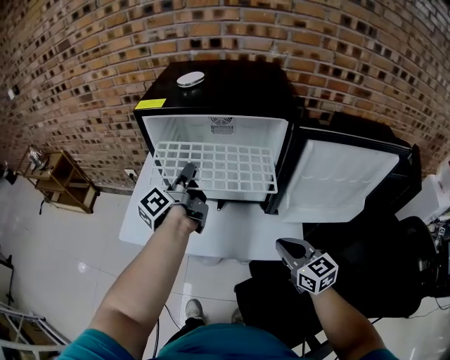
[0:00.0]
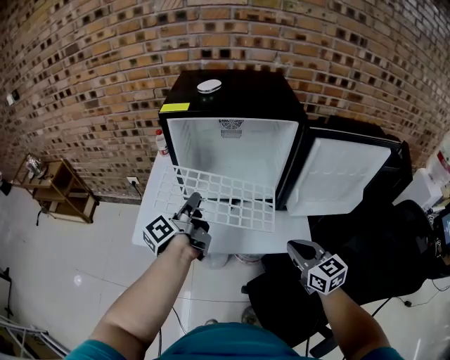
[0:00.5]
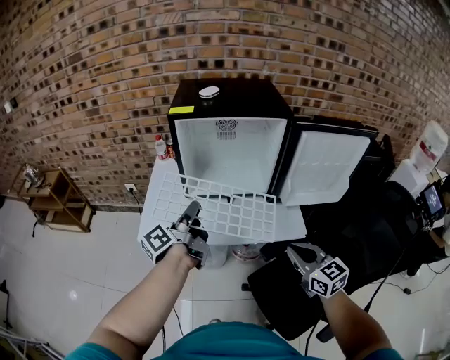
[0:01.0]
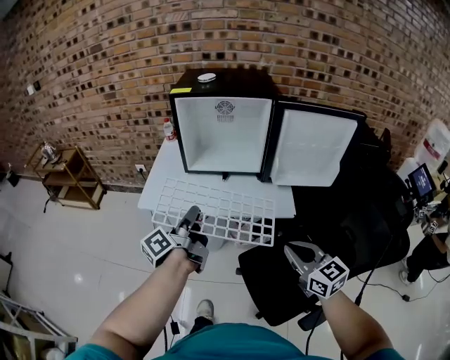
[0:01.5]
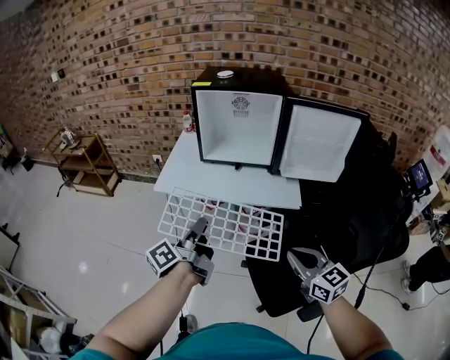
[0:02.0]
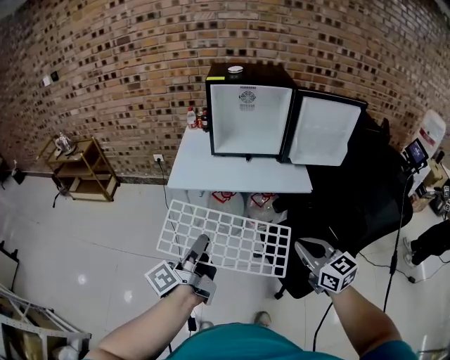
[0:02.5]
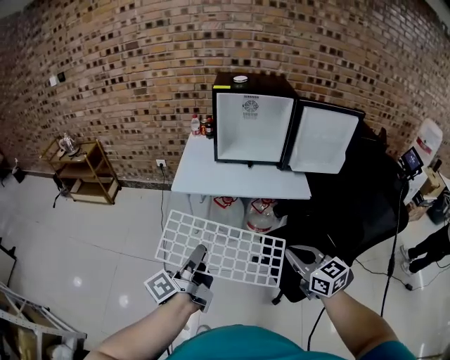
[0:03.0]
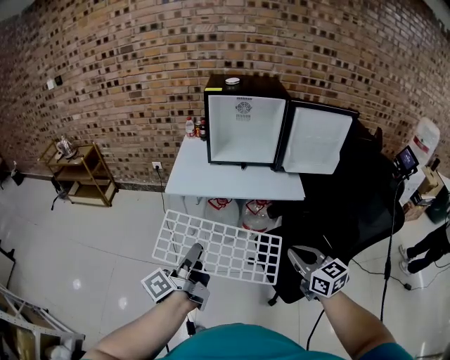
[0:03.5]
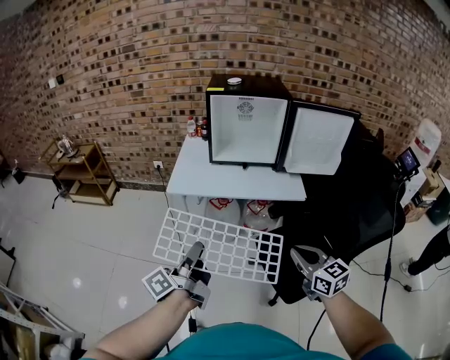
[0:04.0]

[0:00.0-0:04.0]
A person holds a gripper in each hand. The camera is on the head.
0:00.0 to 0:02.0: The two grippers go some 40 cm backward.
0:02.0 to 0:04.0: The left gripper heads to the left and backward, covering approximately 15 cm. Meanwhile the right gripper goes about 10 cm to the left and backward.

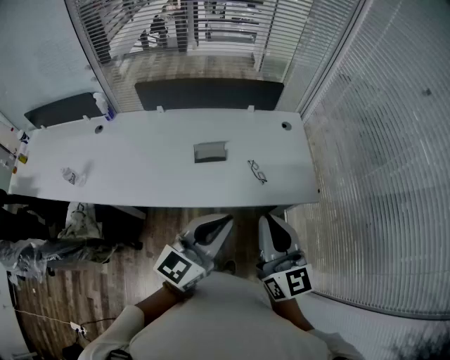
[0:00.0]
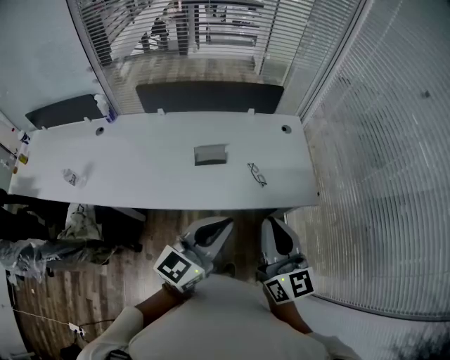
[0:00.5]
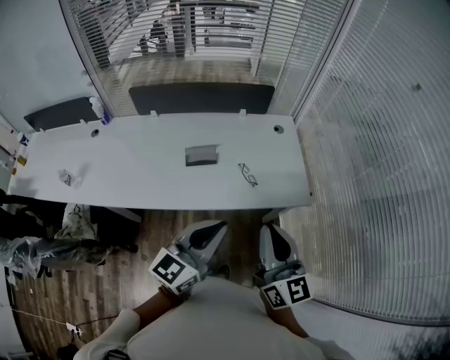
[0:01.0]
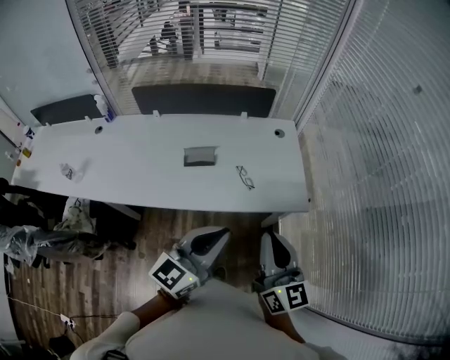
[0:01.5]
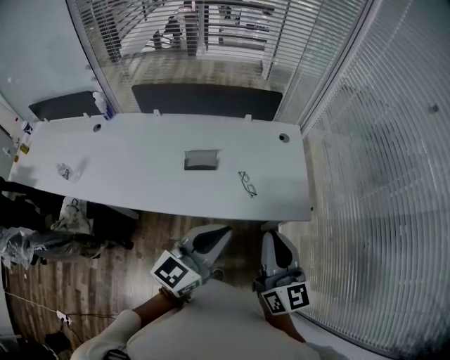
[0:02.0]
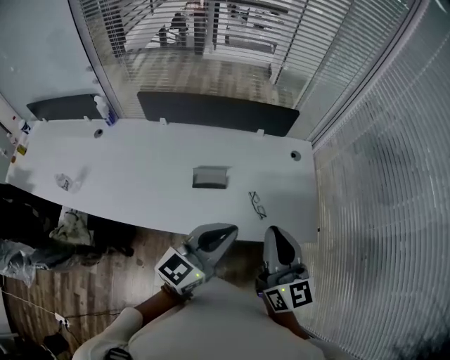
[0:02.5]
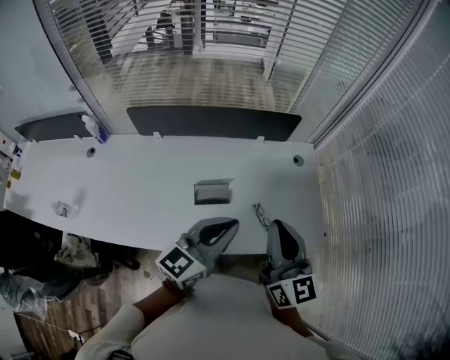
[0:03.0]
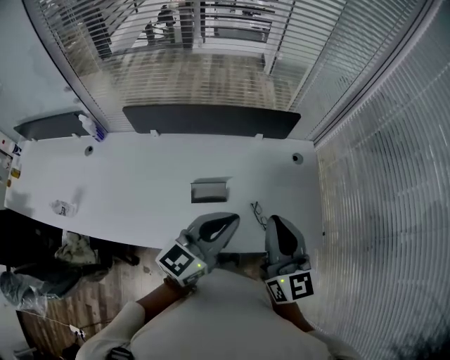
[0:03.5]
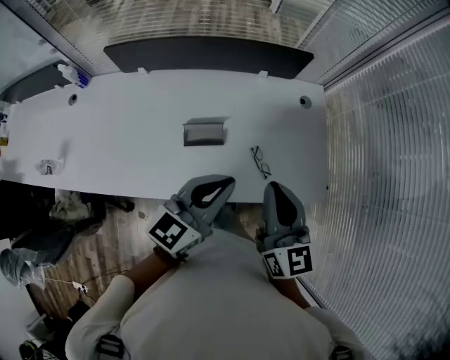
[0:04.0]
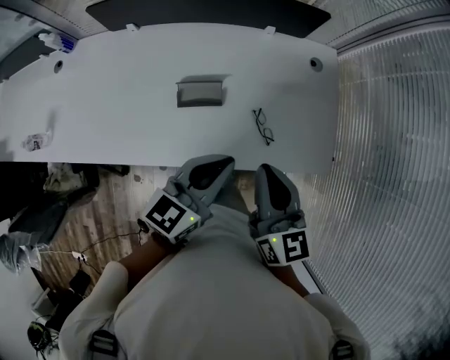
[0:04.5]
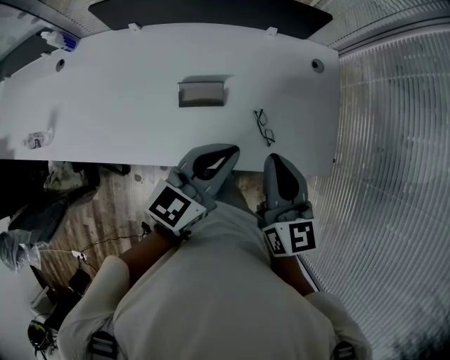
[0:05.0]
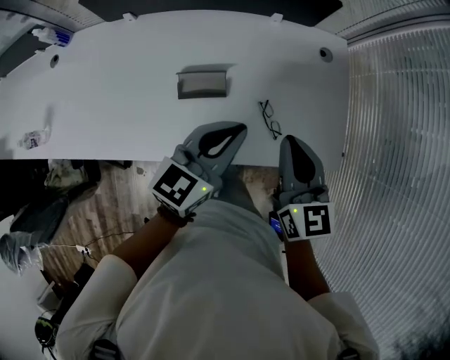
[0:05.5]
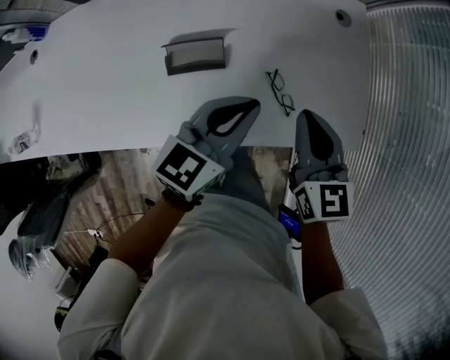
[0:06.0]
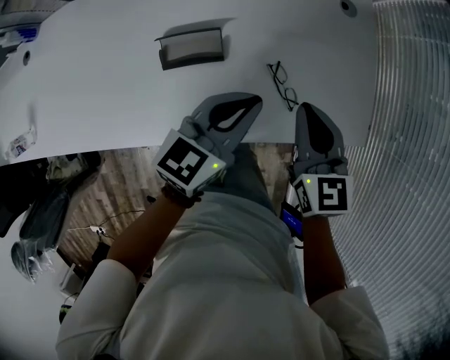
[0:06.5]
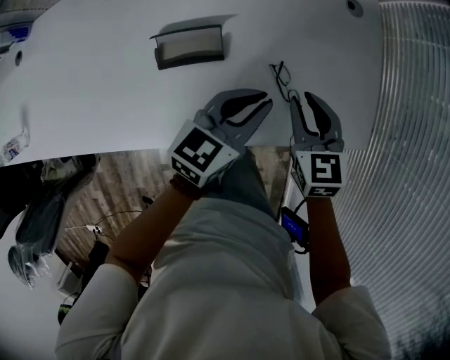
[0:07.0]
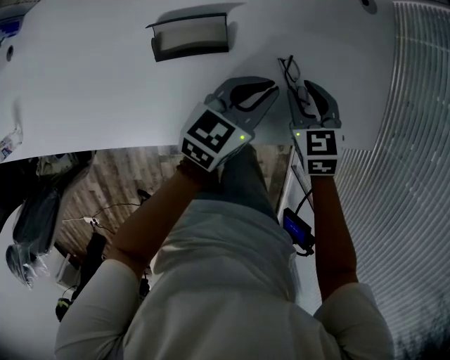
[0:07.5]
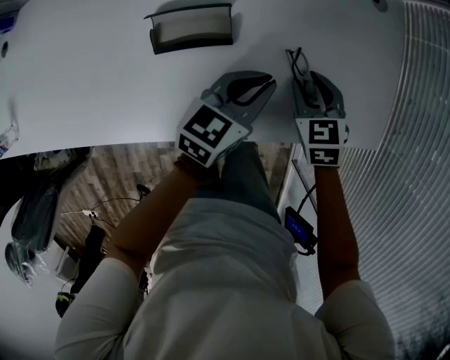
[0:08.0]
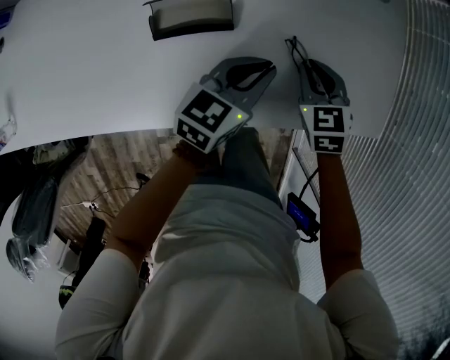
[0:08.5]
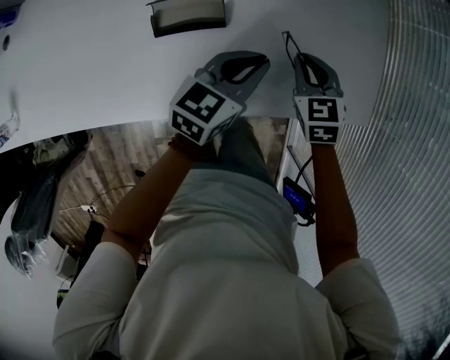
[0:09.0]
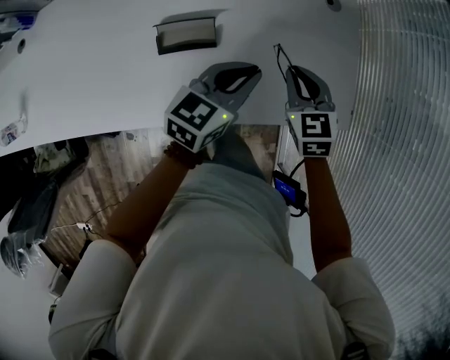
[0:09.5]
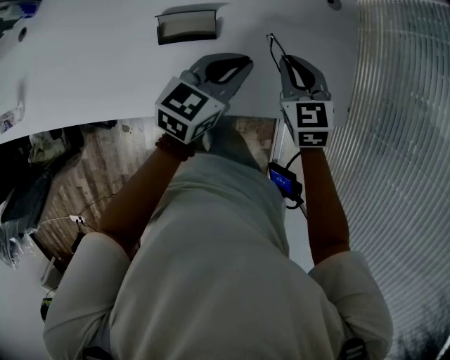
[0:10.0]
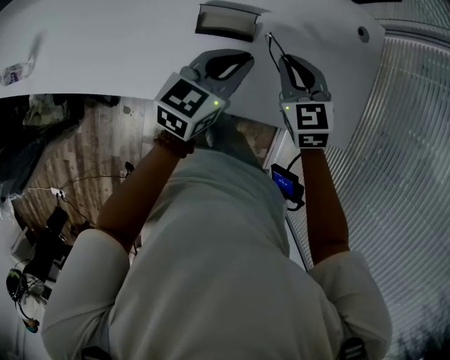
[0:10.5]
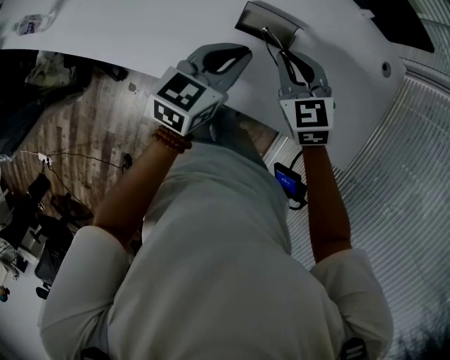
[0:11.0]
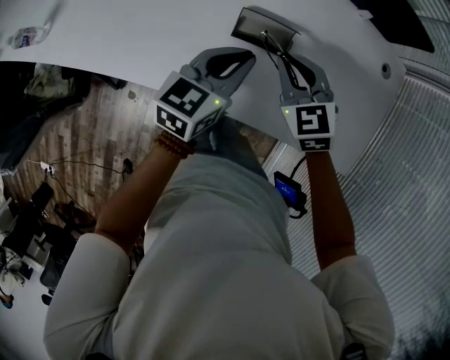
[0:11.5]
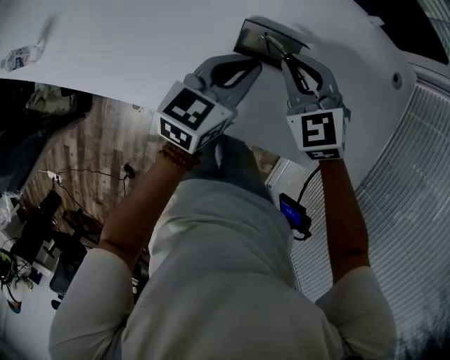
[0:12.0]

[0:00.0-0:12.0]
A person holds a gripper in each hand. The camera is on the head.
0:00.0 to 0:02.0: The two grippers go about 10 cm to the right.
0:02.0 to 0:04.0: Both grippers move forward and to the left, about 20 cm.
0:04.0 to 0:06.0: The two grippers go approximately 15 cm downward.
0:06.0 to 0:08.0: Both grippers travel together downward, roughly 20 cm. The right gripper swivels approximately 30 degrees, and opens up.
0:08.0 to 0:10.0: The grippers both shift upward by about 15 cm. The right gripper closes up.
0:10.0 to 0:12.0: The right gripper moves approximately 20 cm, and rotates roughly 30 degrees. The left gripper shifts by roughly 15 cm.

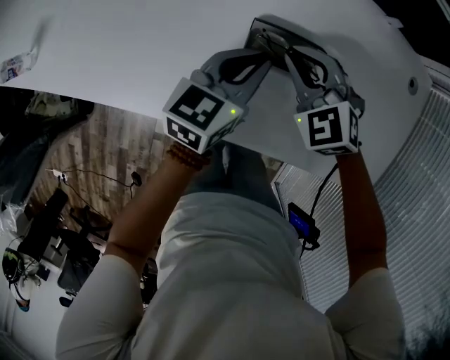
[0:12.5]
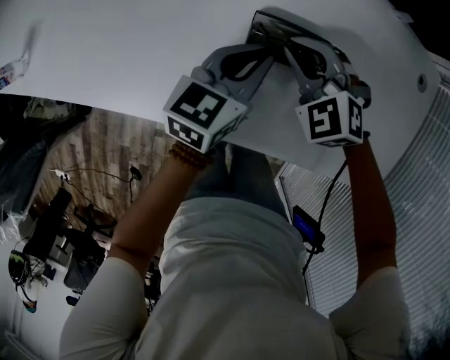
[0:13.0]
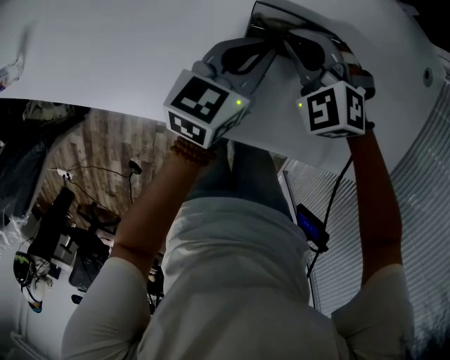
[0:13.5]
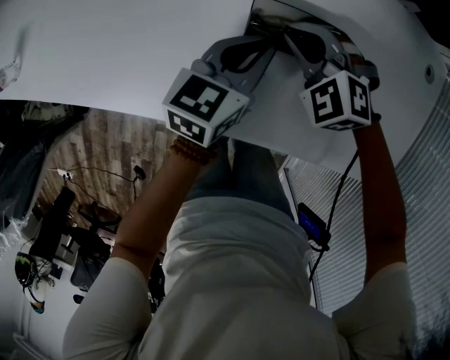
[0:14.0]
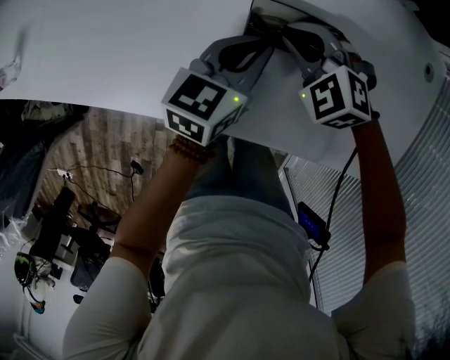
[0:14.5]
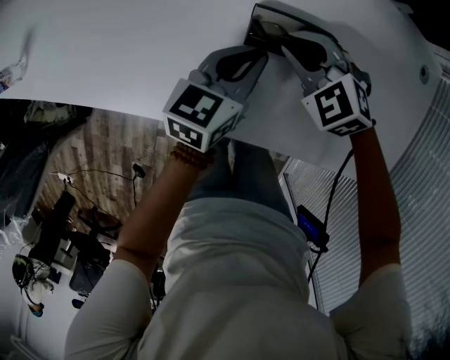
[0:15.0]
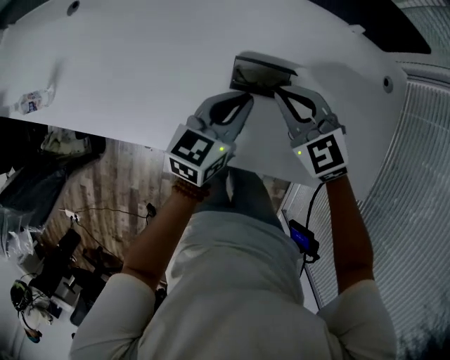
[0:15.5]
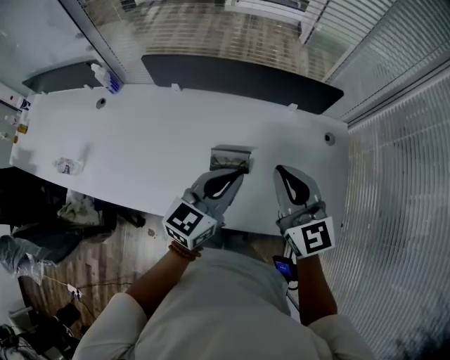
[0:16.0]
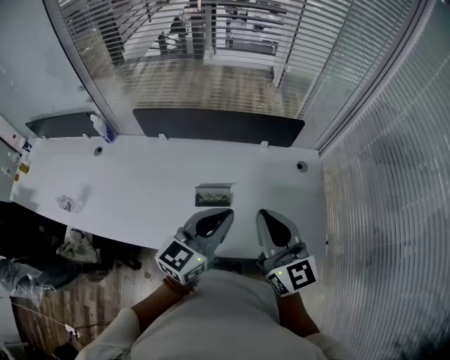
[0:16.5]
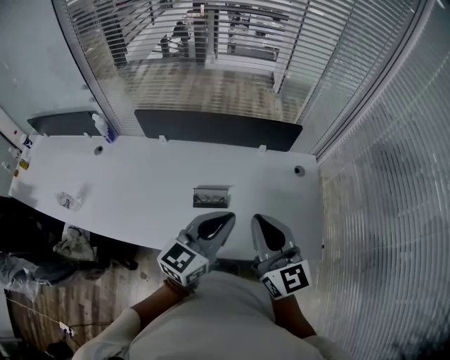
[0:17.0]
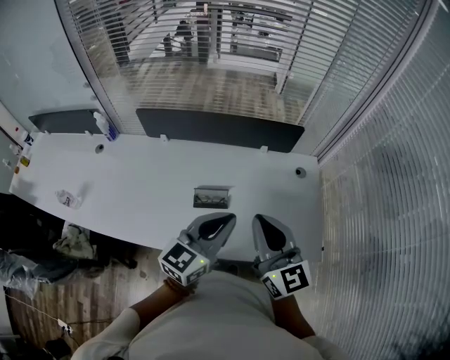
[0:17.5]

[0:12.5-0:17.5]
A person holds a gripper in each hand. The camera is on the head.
0:15.0 to 0:17.5: The grippers both shift upward by approximately 40 cm. The right gripper angles its fingers upward, by approximately 50 degrees; the left gripper turns by some 30 degrees.

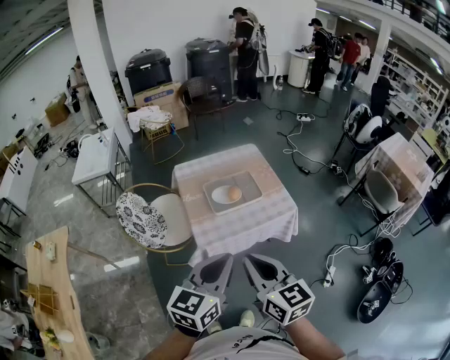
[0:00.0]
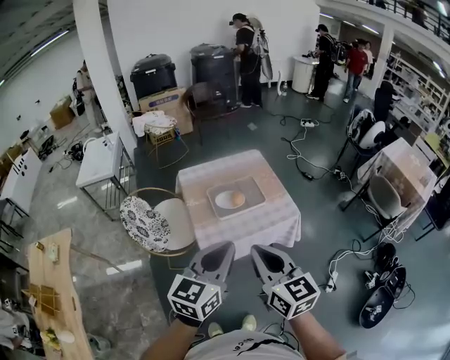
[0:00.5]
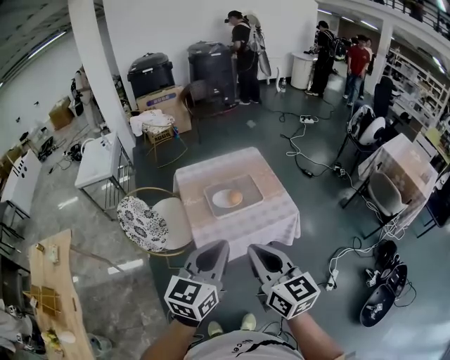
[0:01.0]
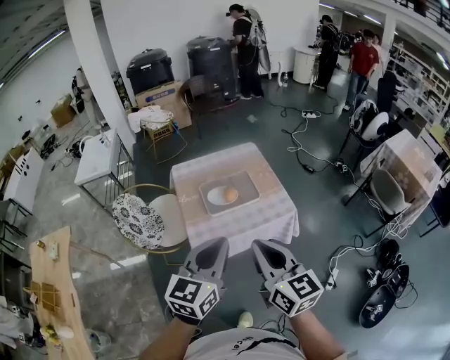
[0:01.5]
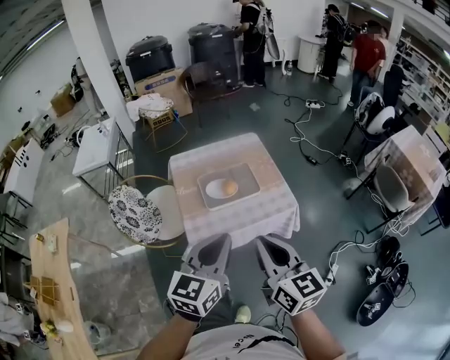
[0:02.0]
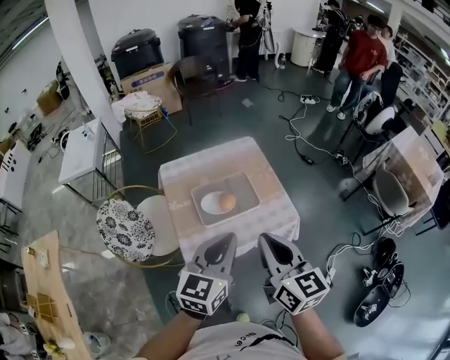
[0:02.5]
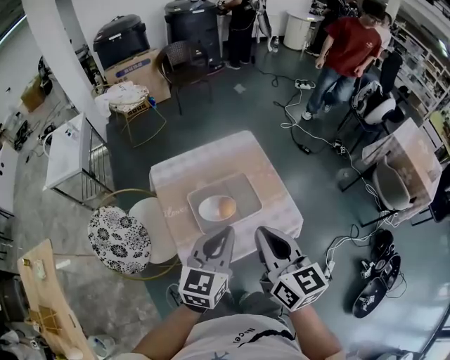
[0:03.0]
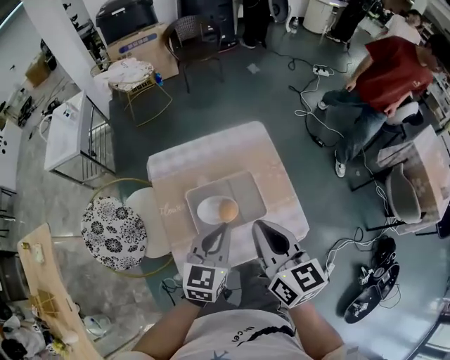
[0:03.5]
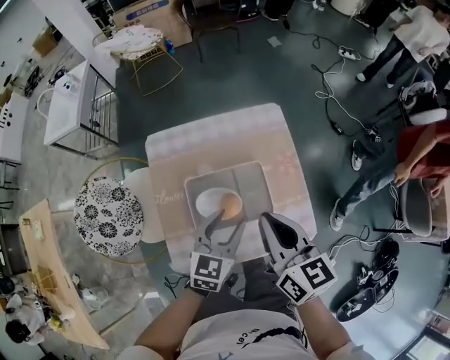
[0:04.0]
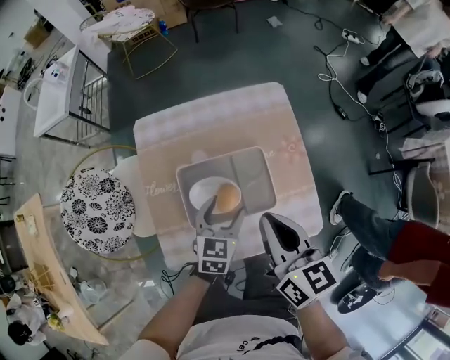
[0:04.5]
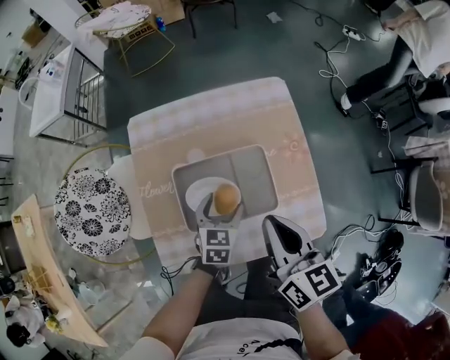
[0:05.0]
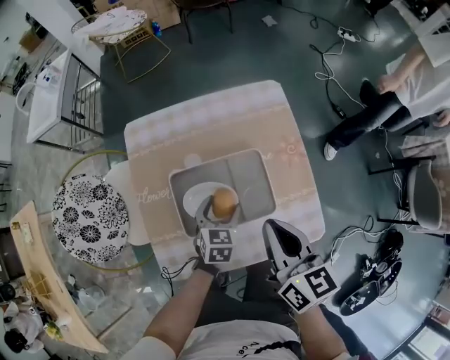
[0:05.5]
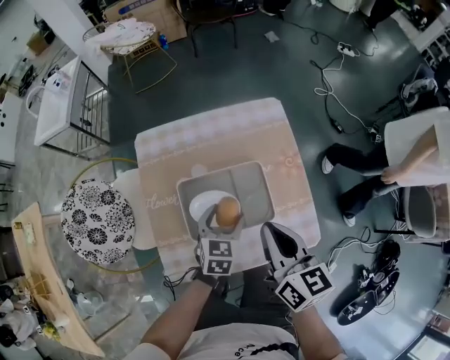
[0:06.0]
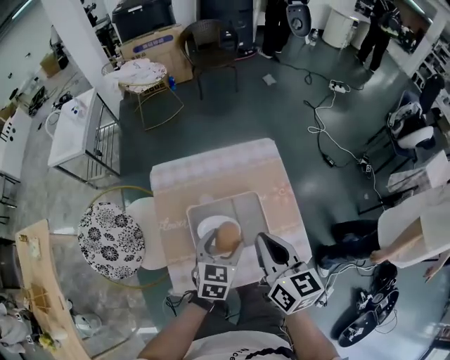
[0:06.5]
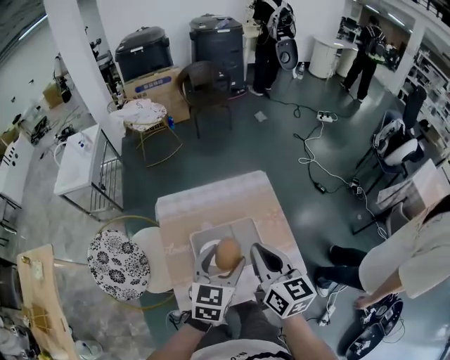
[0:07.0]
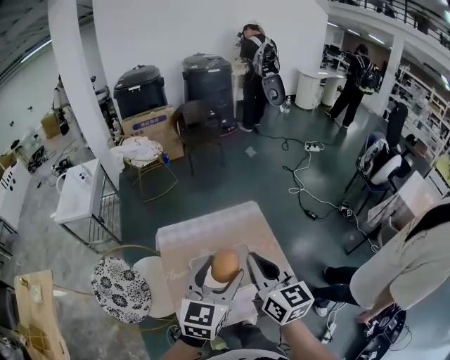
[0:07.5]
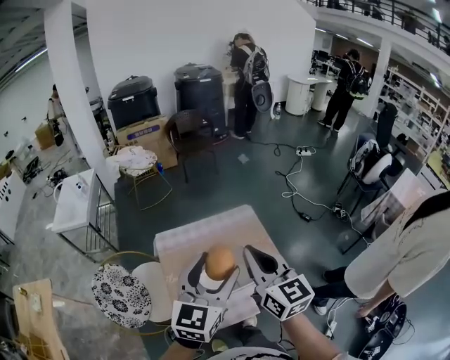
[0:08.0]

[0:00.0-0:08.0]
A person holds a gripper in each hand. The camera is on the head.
0:00.0 to 0:02.0: The left gripper moves forward and to the right, about 10 cm. Meanwhile the right gripper shifts approximately 10 cm to the right and forward.
0:02.0 to 0:04.0: The right gripper travels forward by approximately 35 cm, while the left gripper heads forward and downward, covering roughly 40 cm, and opens up.
0:04.0 to 0:06.0: The right gripper is displaced downward by about 10 cm; the left gripper goes roughly 15 cm downward, and opens up.
0:06.0 to 0:08.0: The right gripper heads upward, covering roughly 25 cm, and changes its angle by about 30 degrees. Meanwhile the left gripper travels upward by some 40 cm, and tilts its fingers approximately 40 degrees upward.
